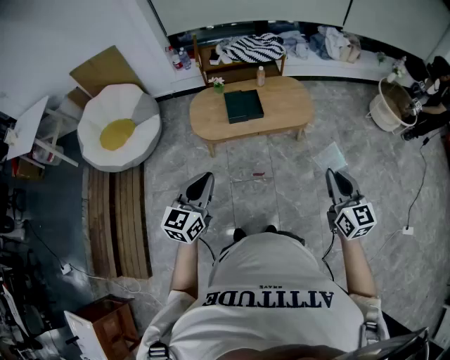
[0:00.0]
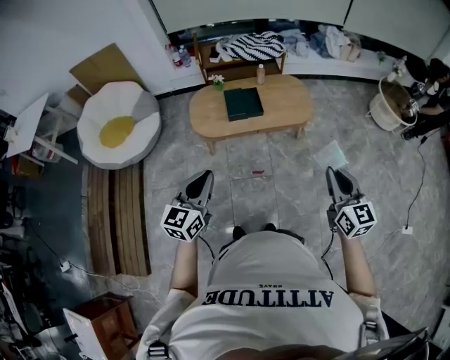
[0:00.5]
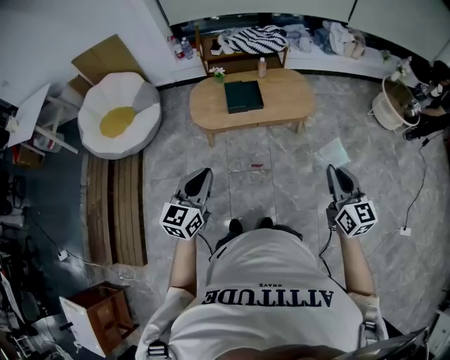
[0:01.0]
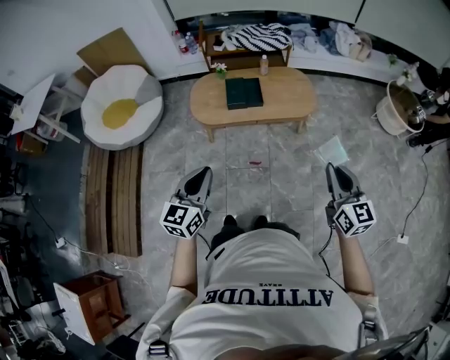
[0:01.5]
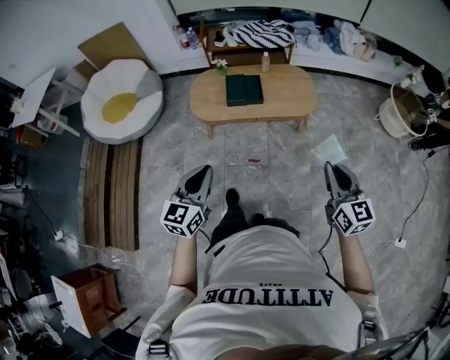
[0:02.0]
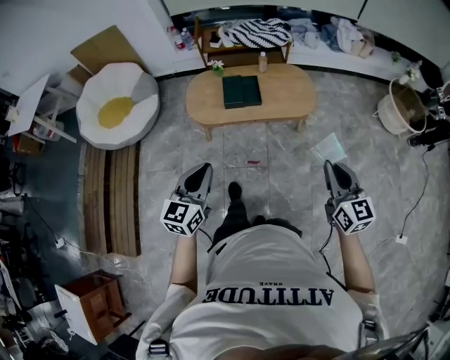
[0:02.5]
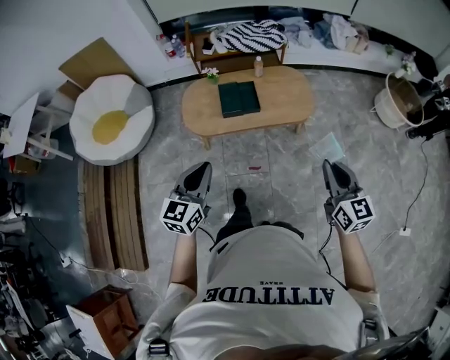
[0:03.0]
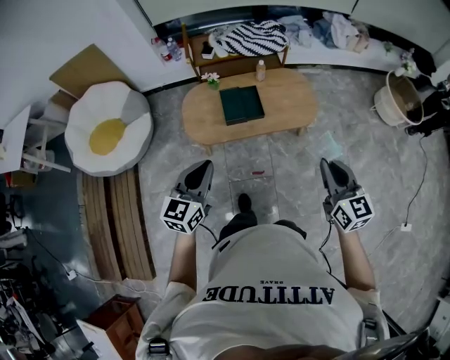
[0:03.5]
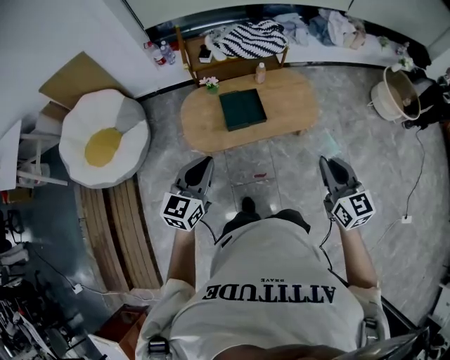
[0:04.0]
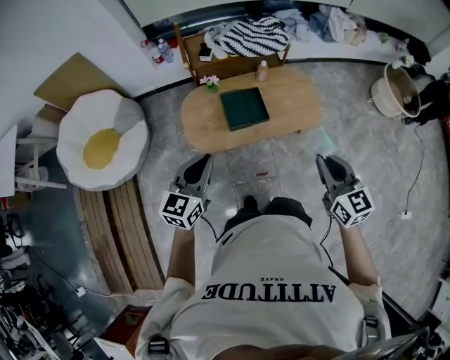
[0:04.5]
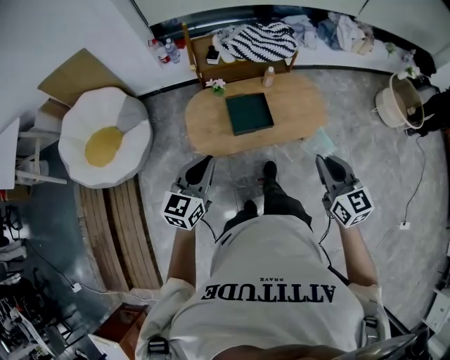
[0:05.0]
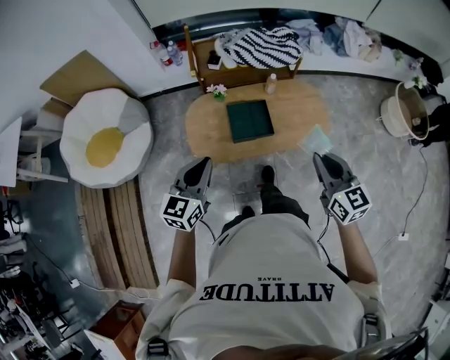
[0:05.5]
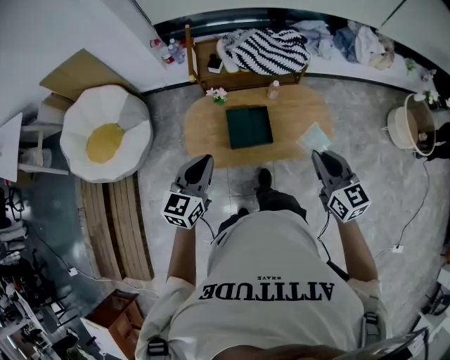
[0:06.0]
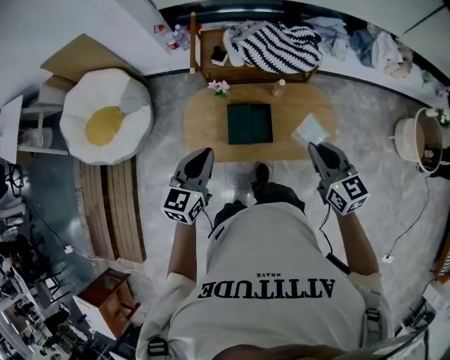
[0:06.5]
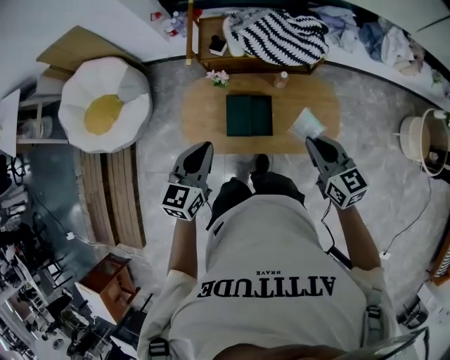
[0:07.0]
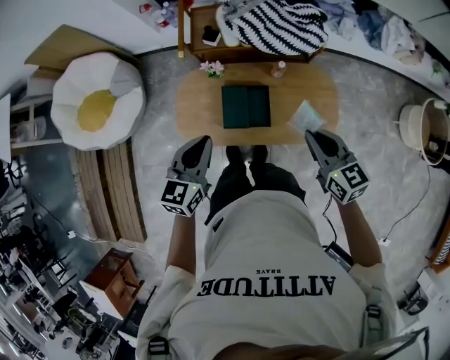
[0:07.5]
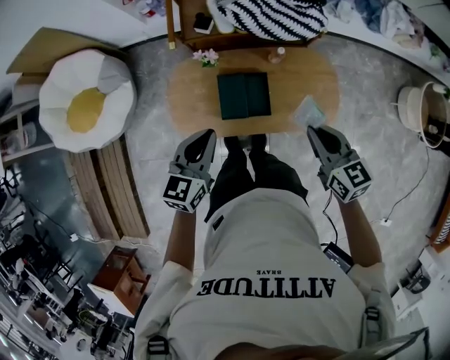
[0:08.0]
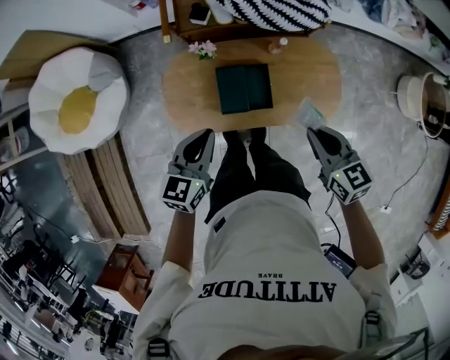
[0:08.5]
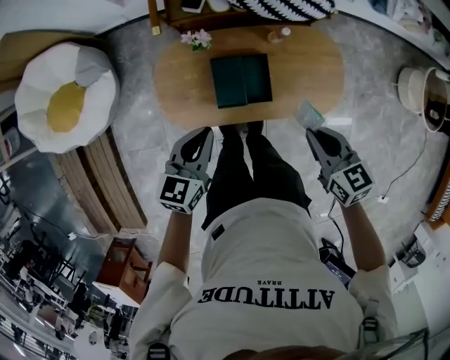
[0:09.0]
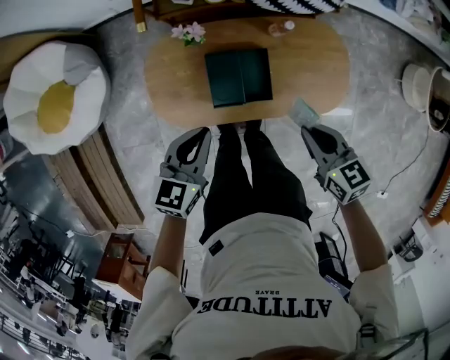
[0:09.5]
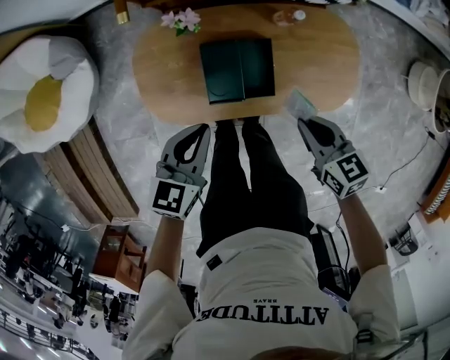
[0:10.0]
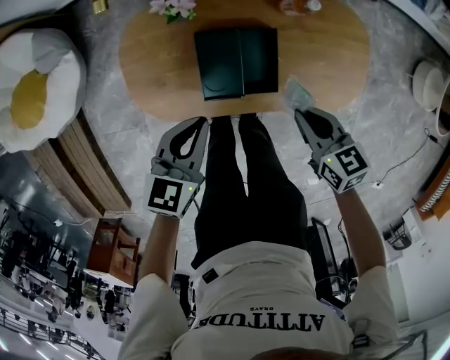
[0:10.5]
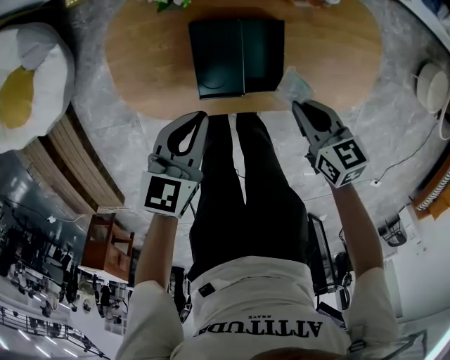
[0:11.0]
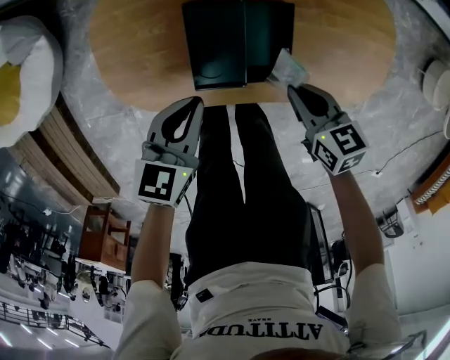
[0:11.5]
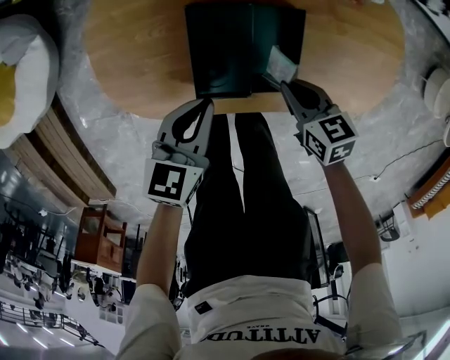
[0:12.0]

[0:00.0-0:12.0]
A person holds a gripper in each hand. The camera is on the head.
0:00.0 to 0:02.0: The grippers both shift to the right by some 10 cm.
0:02.0 to 0:04.0: Both grippers travel together forward and to the left, roughly 30 cm.
0:04.0 to 0:06.0: The grippers both shift forward by approximately 20 cm.
0:06.0 to 0:08.0: The right gripper moves forward and downward, about 20 cm. The left gripper is displaced forward, downward and to the right by some 15 cm.
0:08.0 to 0:10.0: Both grippers move downward, approximately 20 cm.
0:10.0 to 0:12.0: The two grippers go about 25 cm downward.

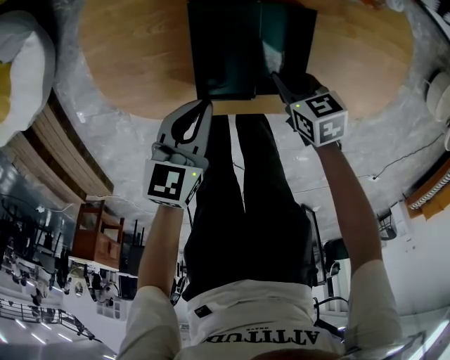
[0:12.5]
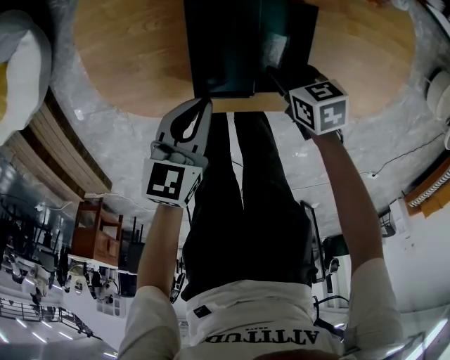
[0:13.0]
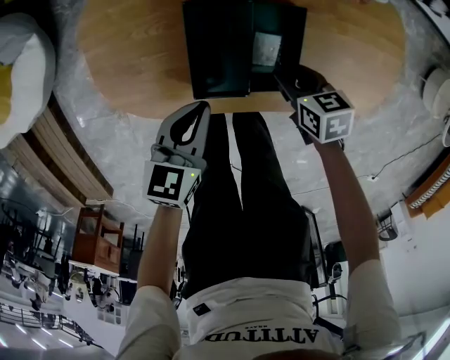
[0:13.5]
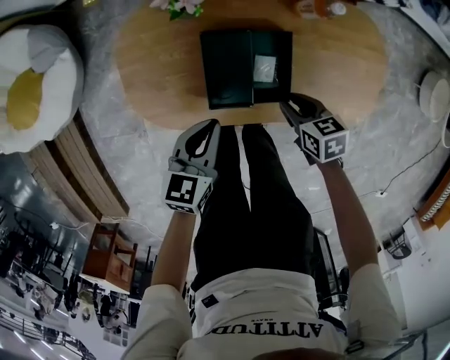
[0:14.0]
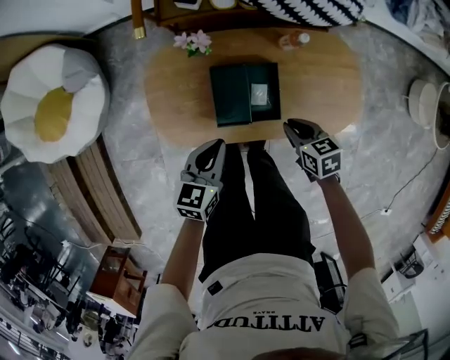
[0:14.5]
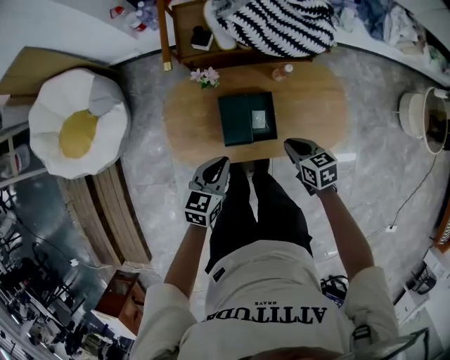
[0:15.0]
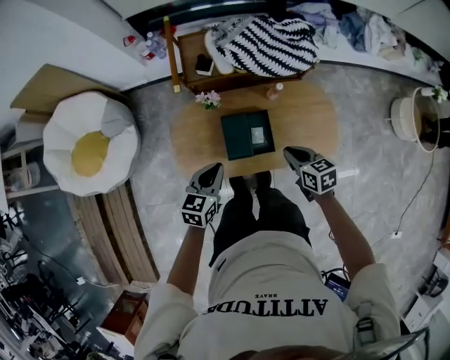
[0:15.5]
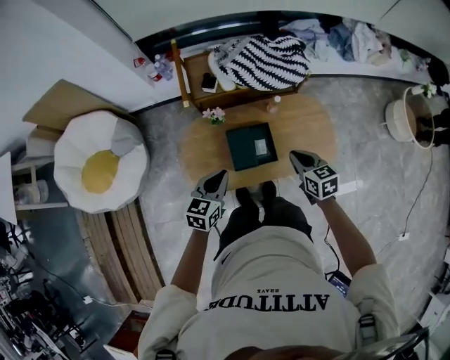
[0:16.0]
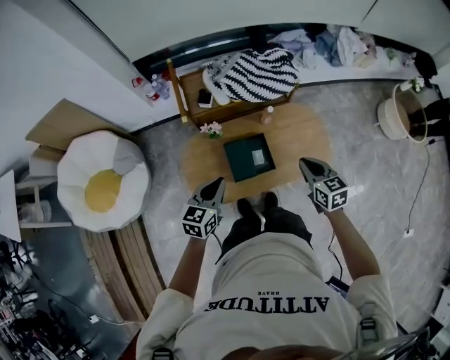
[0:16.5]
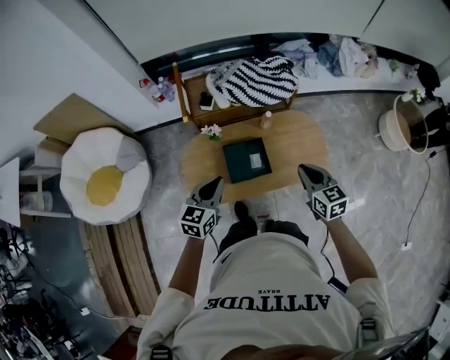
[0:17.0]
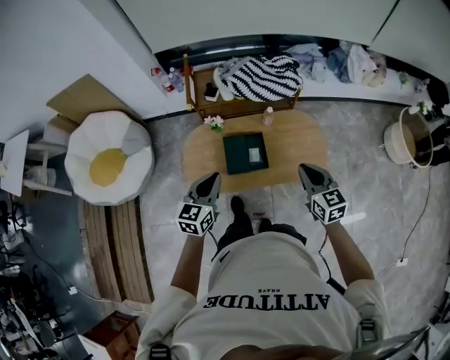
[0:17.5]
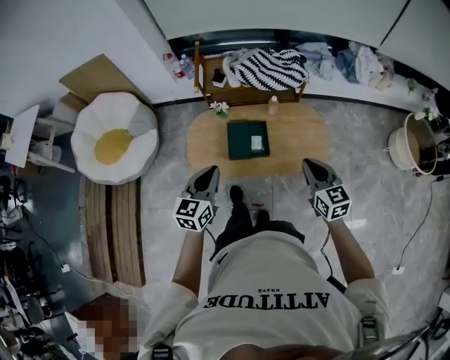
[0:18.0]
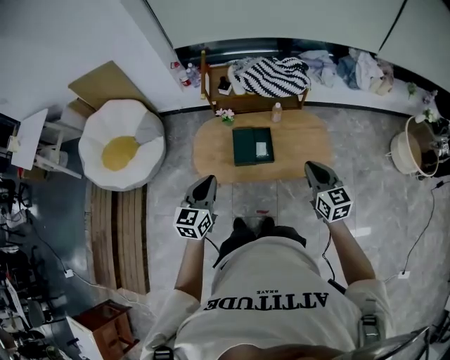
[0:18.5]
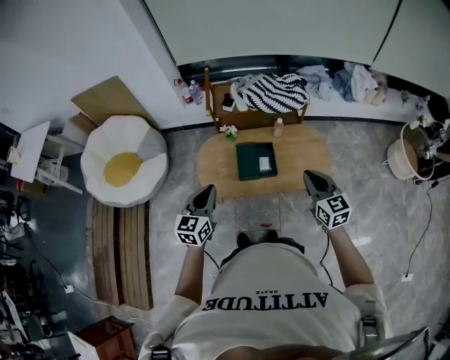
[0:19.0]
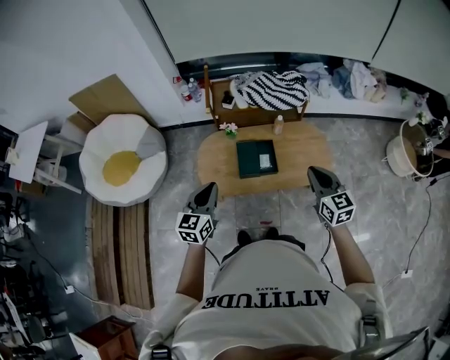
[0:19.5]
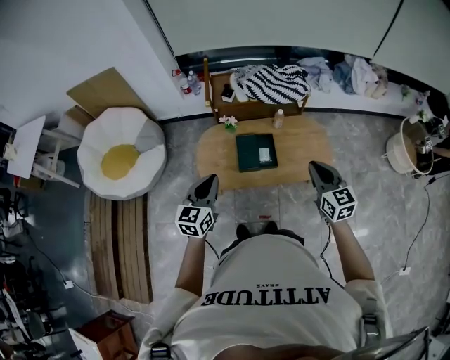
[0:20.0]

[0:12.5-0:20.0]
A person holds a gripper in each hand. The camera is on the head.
0:12.5 to 0:14.5: Both grippers move upward, roughly 20 cm. The right gripper opens and closes again.
0:14.5 to 0:16.5: The grippers both shift upward by some 25 cm. The right gripper turns by some 30 degrees.
0:16.5 to 0:18.0: The right gripper heads backward, to the right and upward, covering about 20 cm, while the left gripper moves backward, upward and to the right, some 20 cm, and swivels some 20 degrees.
0:18.0 to 0:20.0: The left gripper is displaced to the left by about 10 cm. Meanwhile the right gripper moves about 5 cm.

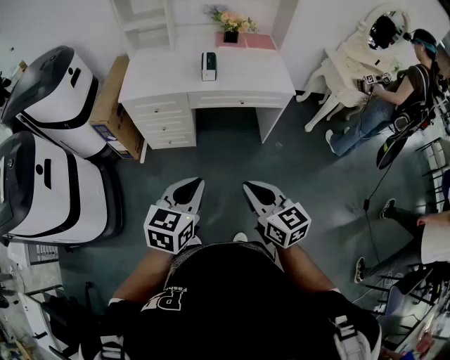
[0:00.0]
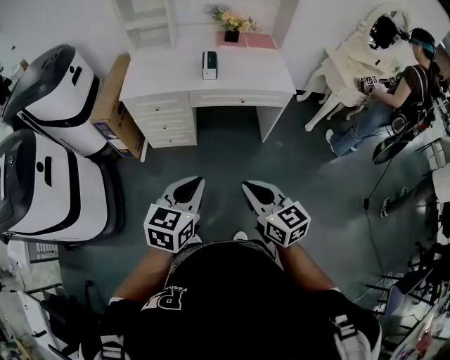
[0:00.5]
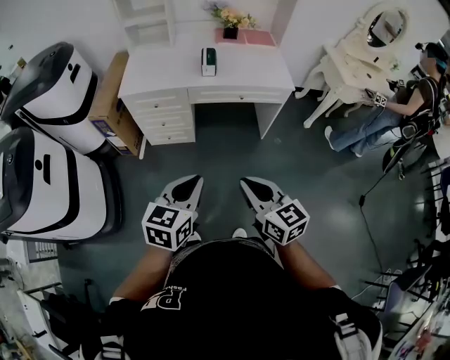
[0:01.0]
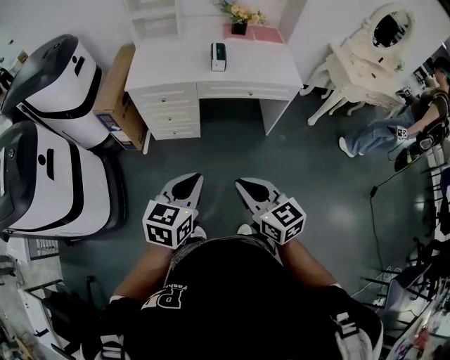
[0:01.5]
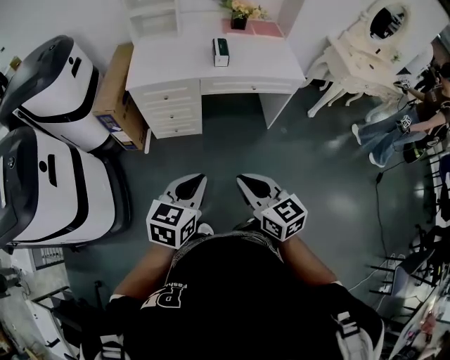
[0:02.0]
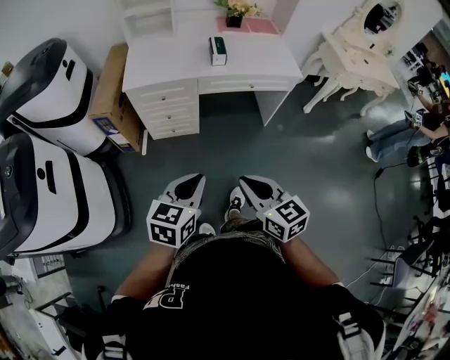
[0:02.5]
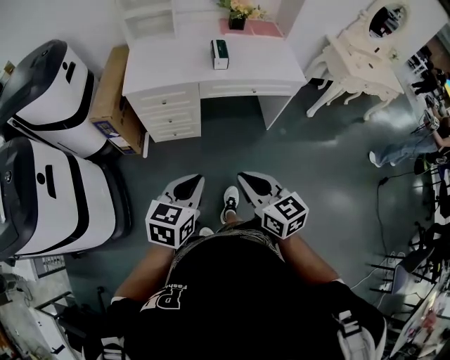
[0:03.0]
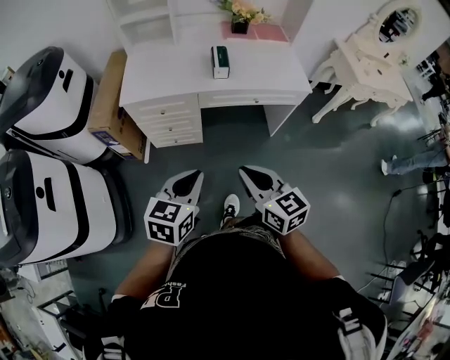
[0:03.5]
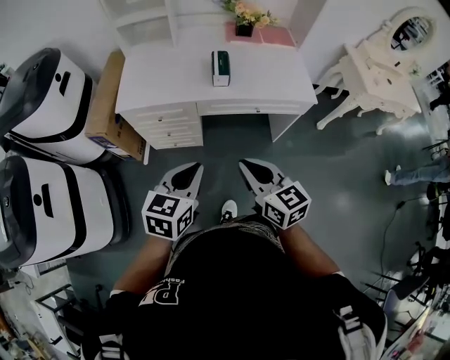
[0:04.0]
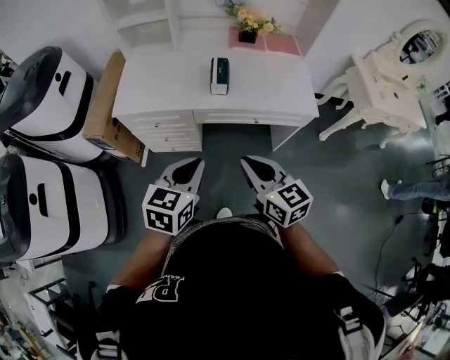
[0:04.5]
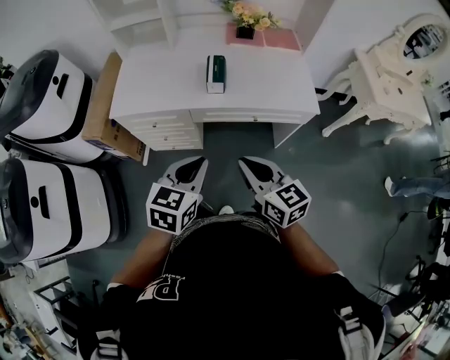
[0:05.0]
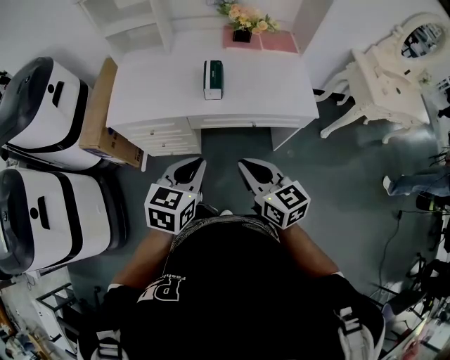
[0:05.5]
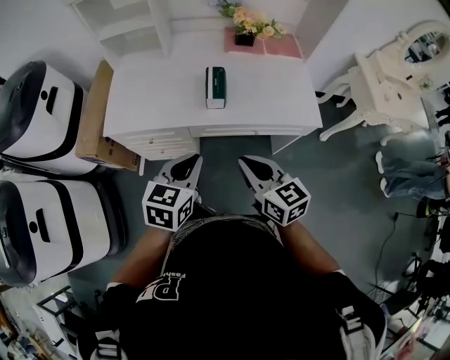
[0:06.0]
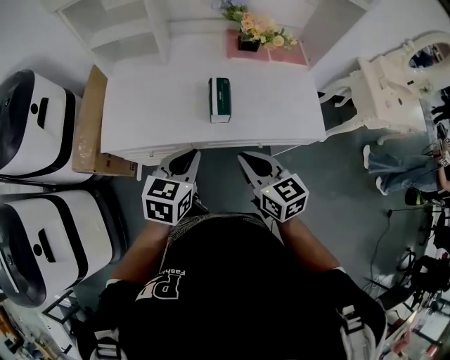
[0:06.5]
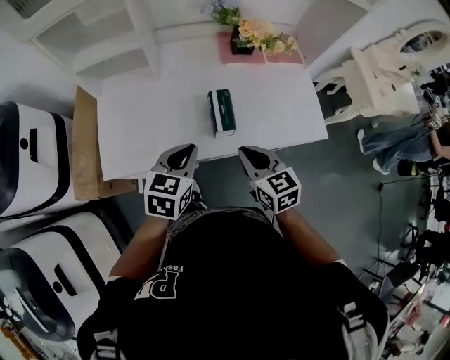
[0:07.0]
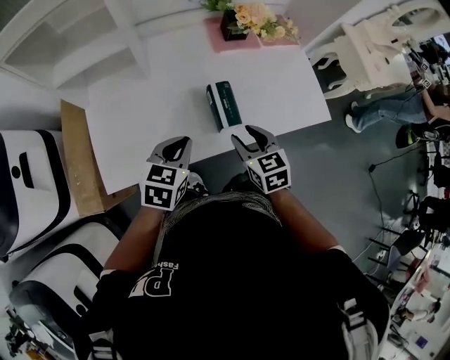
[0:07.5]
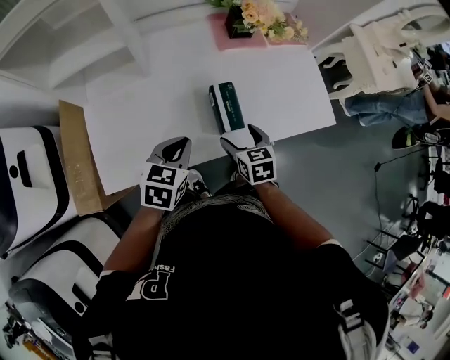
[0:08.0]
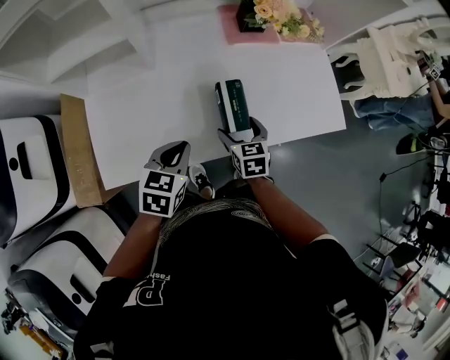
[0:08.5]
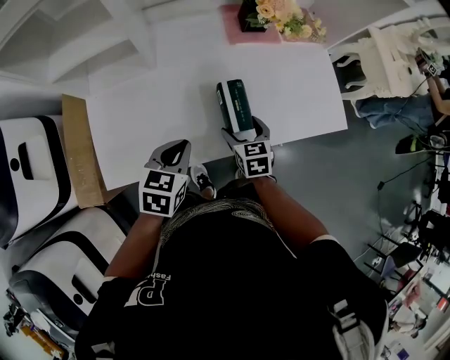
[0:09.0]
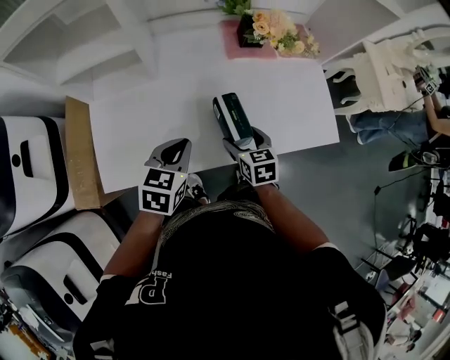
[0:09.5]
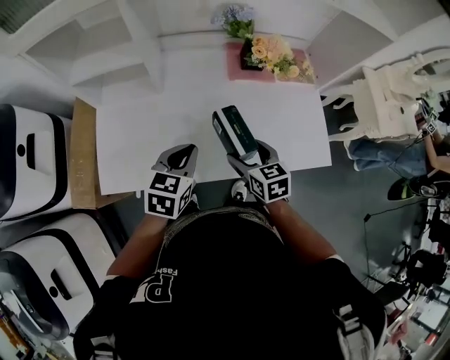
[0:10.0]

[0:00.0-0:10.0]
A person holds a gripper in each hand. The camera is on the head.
0:00.0 to 0:02.0: Both grippers travel together to the left, about 10 cm.
0:02.0 to 0:04.0: The two grippers go approximately 25 cm forward.
0:04.0 to 0:06.0: The two grippers go about 15 cm forward.
0:06.0 to 0:08.0: The right gripper moves forward and downward, some 30 cm, changes its angle by some 40 degrees, and opens its fingers; the left gripper heads forward and to the left, covering approximately 30 cm.
0:08.0 to 0:10.0: Both grippers travel together upward, some 5 cm.
